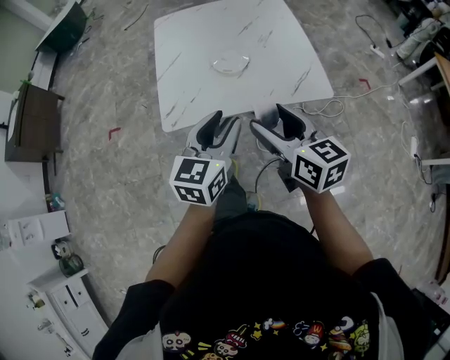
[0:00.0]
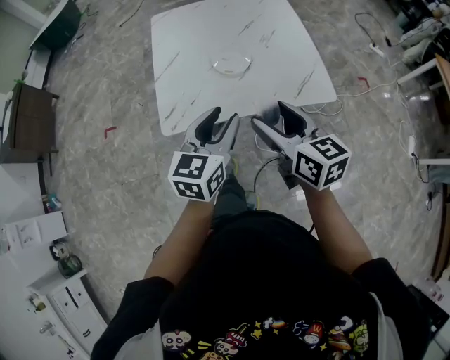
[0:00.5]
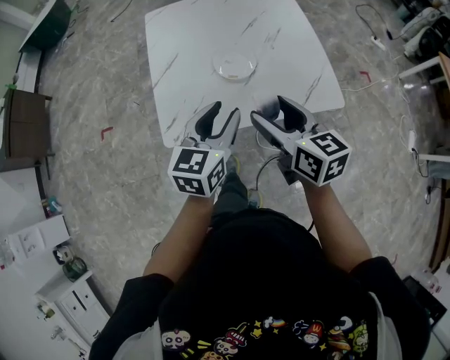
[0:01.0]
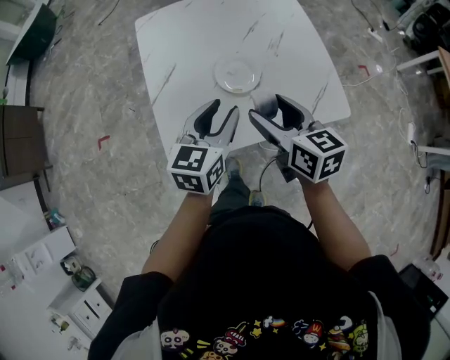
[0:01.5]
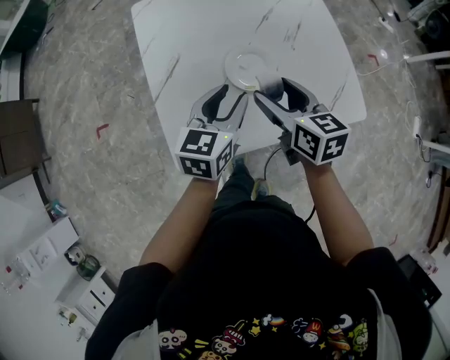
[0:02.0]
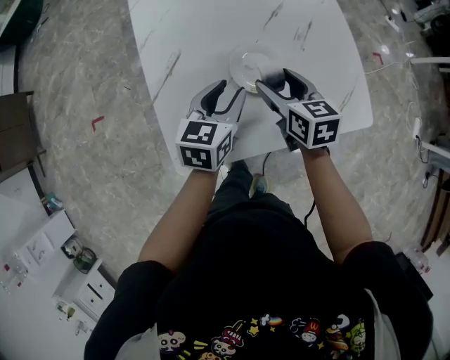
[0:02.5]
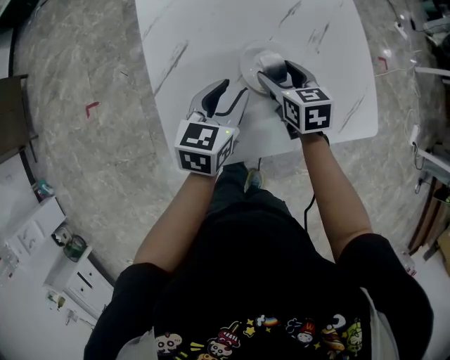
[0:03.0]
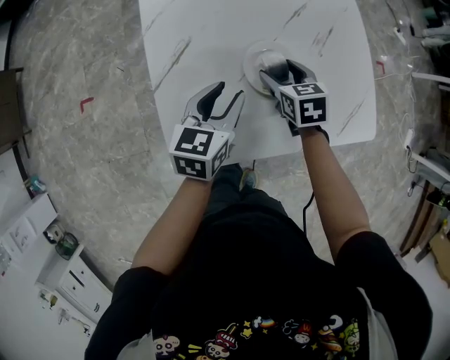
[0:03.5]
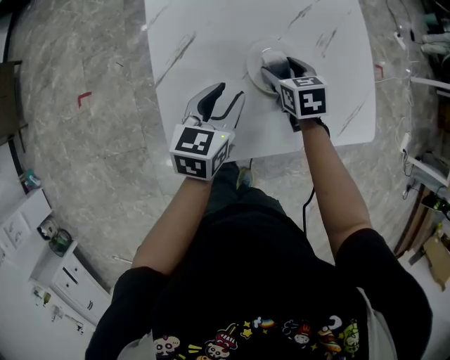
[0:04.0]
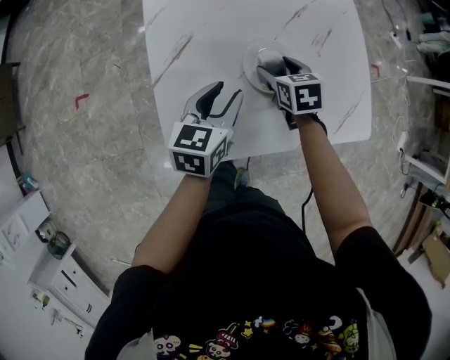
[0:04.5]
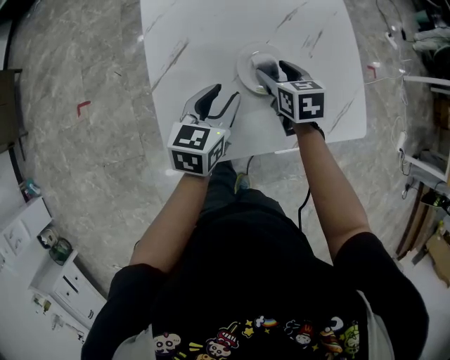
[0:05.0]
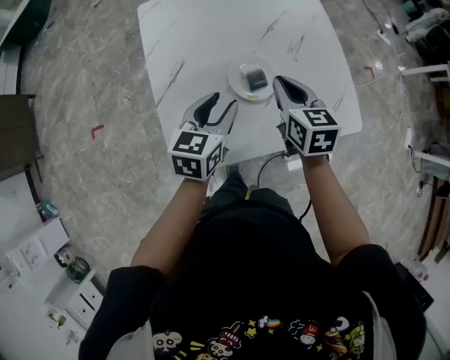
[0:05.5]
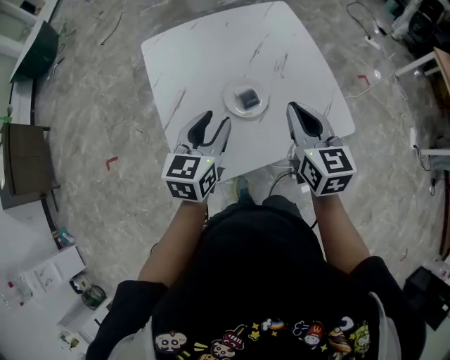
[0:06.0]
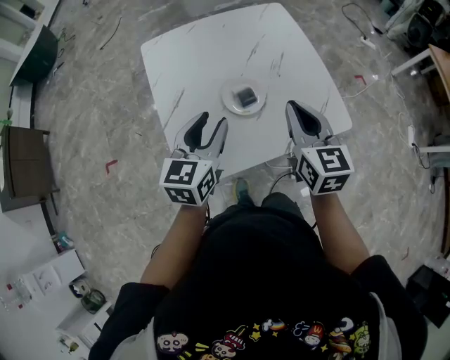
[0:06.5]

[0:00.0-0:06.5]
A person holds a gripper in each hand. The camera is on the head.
0:00.0 to 0:02.0: The left gripper heads forward, covering approximately 30 cm. Meanwhile the right gripper goes approximately 30 cm forward and downward.
0:02.0 to 0:04.5: The right gripper travels downward and forward by some 20 cm, and rotates about 30 degrees. Meanwhile the left gripper moves downward and to the left, approximately 10 cm.
0:04.5 to 0:06.5: The left gripper shifts roughly 15 cm upward and backward. Meanwhile the right gripper is displaced upward and backward by roughly 30 cm, angles its fingers upward, by about 40 degrees, and closes its fingers.

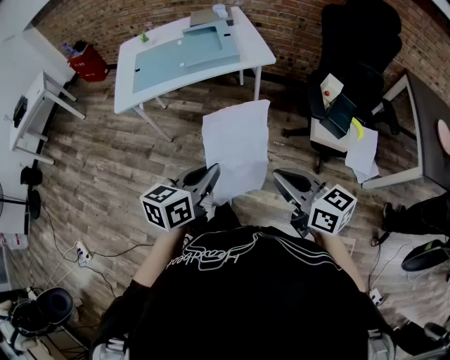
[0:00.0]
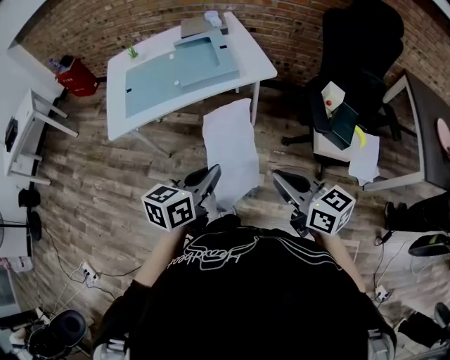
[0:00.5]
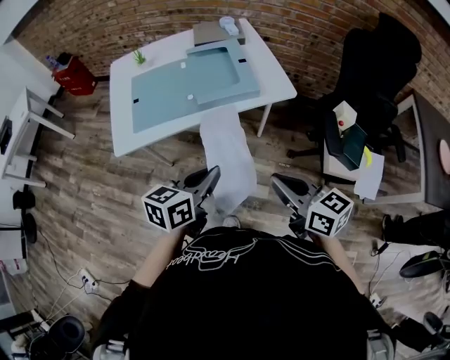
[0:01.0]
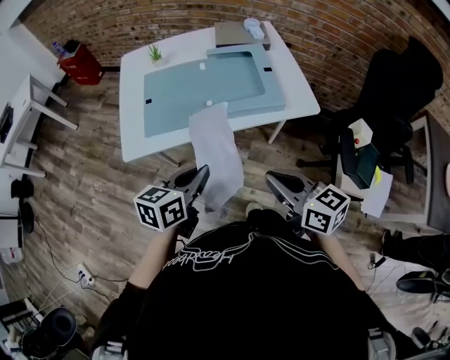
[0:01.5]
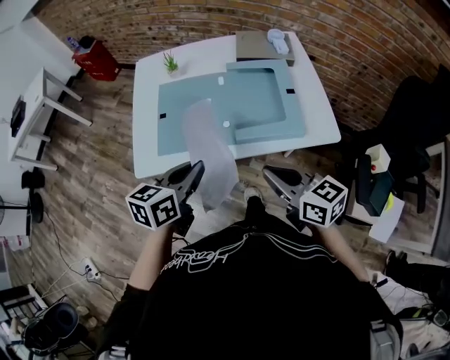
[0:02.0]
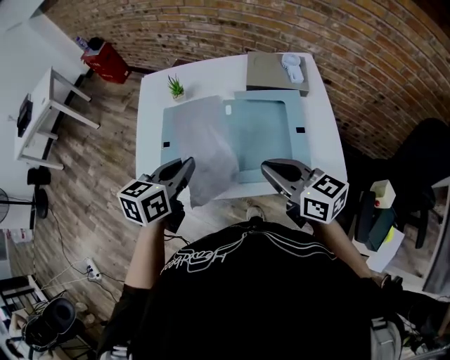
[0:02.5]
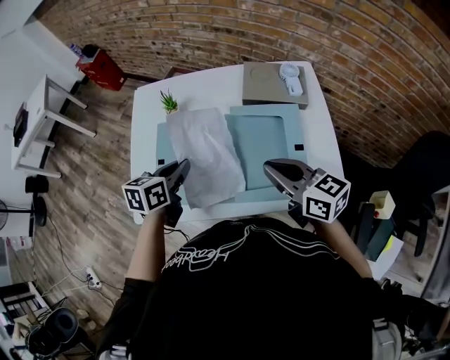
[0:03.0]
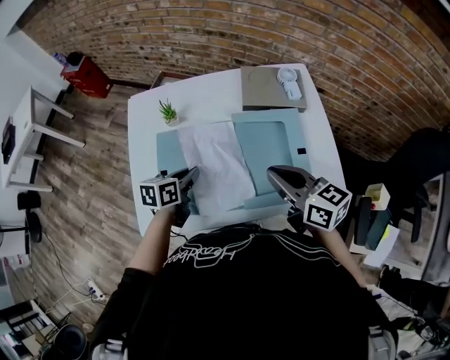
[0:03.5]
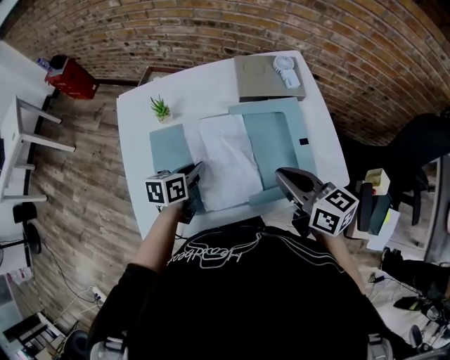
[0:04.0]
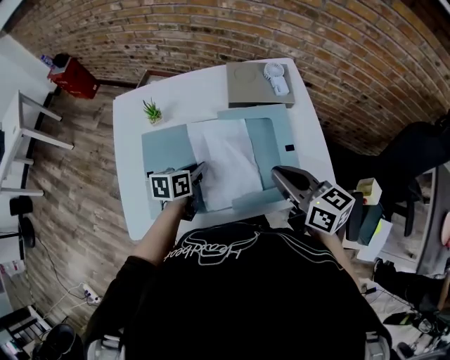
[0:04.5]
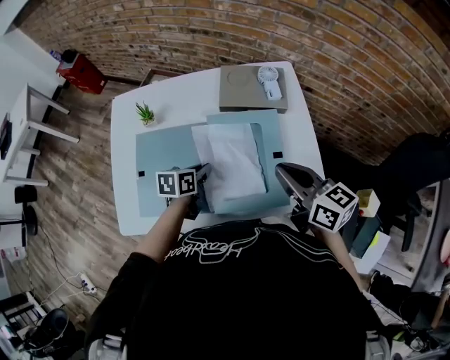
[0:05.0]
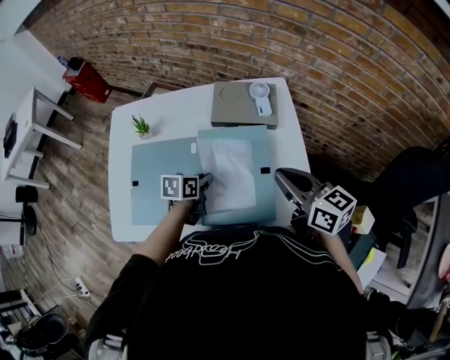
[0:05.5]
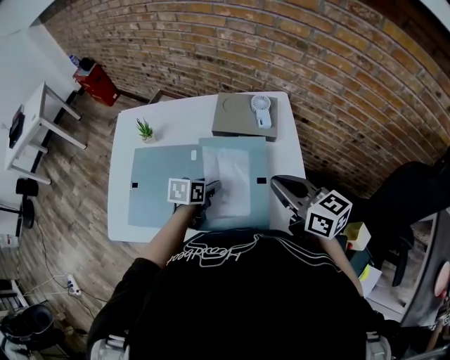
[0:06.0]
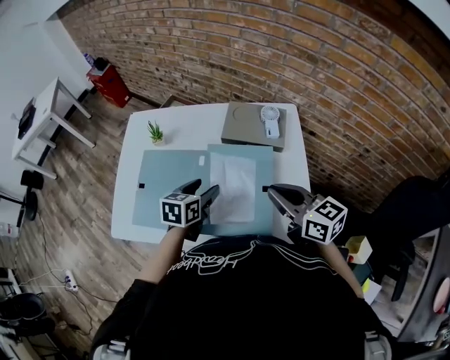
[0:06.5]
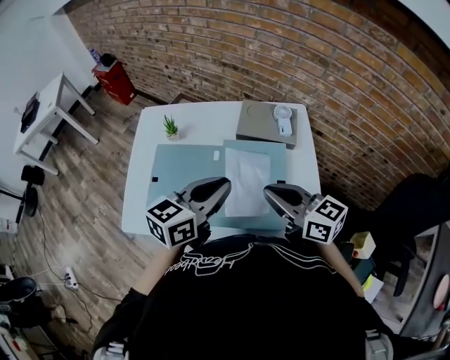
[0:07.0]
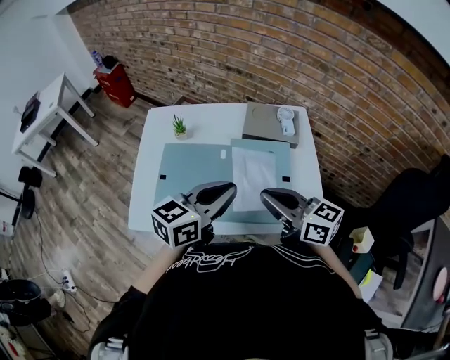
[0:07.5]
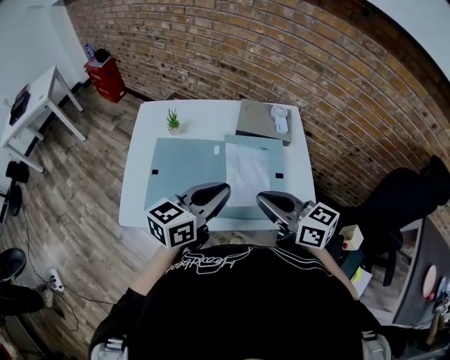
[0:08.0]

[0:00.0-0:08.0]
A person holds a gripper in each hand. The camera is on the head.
0:00.0 to 0:02.0: The two grippers travel together, forward and to the left, some 40 cm.
0:02.0 to 0:04.0: The right gripper goes roughly 20 cm forward. The left gripper moves forward and downward, roughly 25 cm.
0:04.0 to 0:06.0: The left gripper heads to the right, covering roughly 15 cm, and opens its fingers; the right gripper shifts about 15 cm to the right and forward.
0:06.0 to 0:08.0: The left gripper is displaced upward and backward by roughly 25 cm, tilts its fingers approximately 40 degrees upward, and closes. The right gripper travels to the left and backward by some 15 cm.

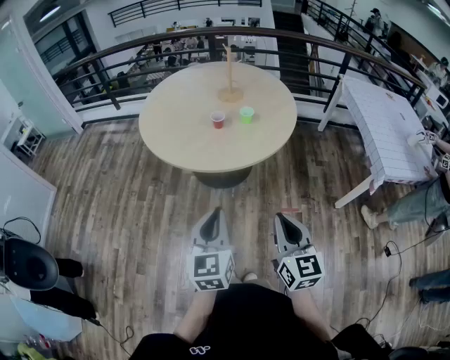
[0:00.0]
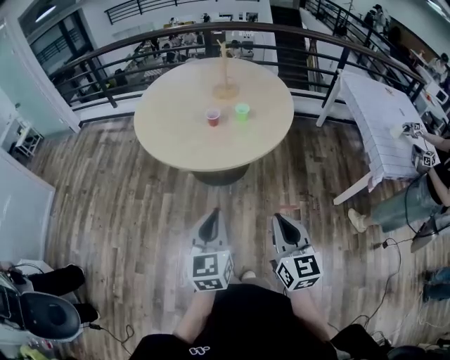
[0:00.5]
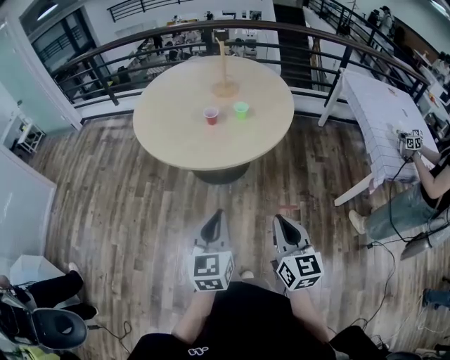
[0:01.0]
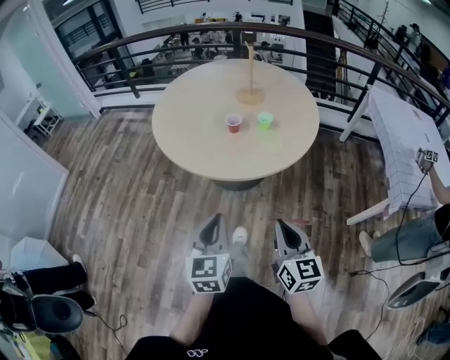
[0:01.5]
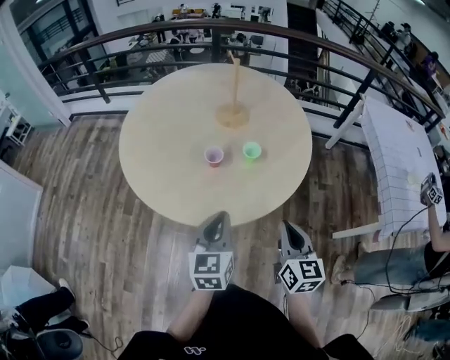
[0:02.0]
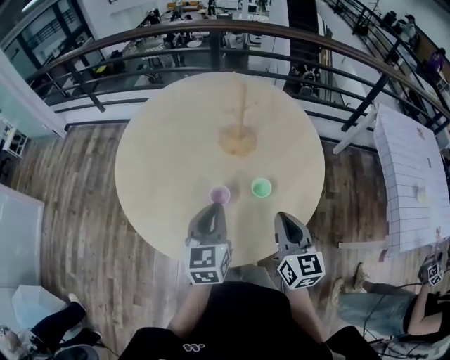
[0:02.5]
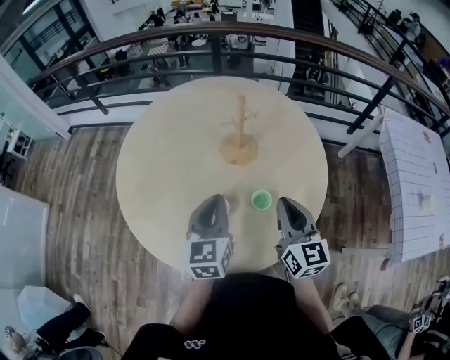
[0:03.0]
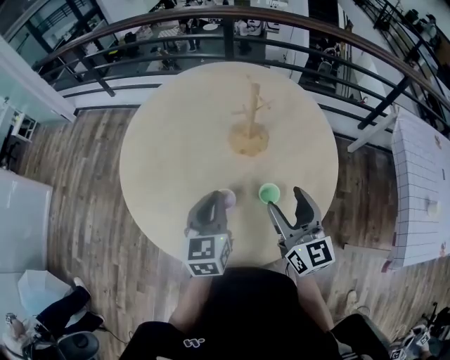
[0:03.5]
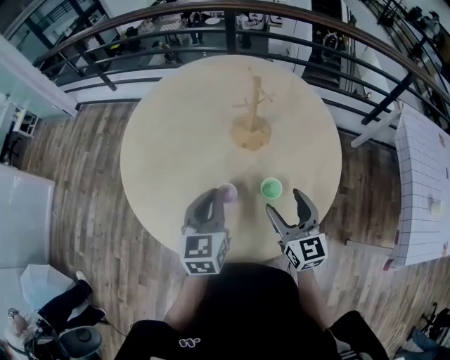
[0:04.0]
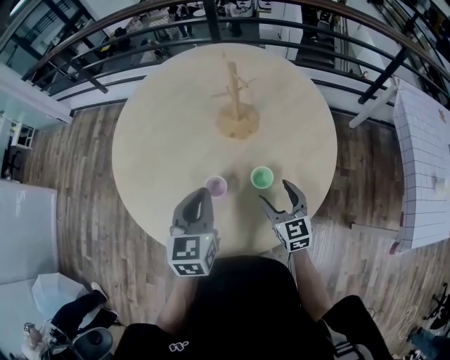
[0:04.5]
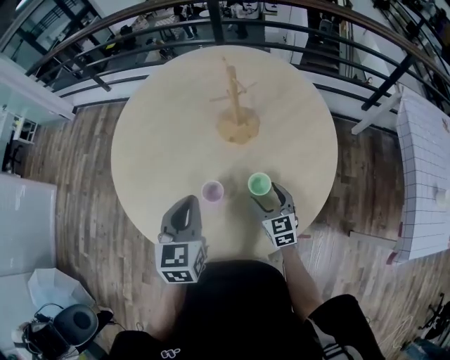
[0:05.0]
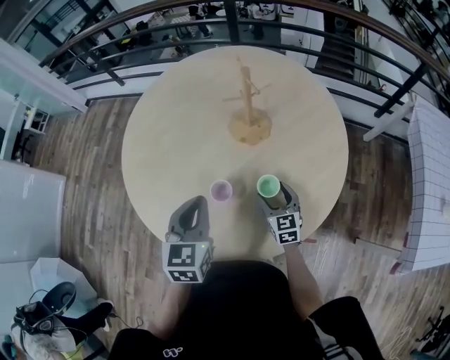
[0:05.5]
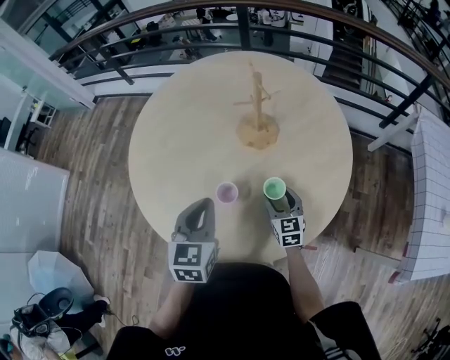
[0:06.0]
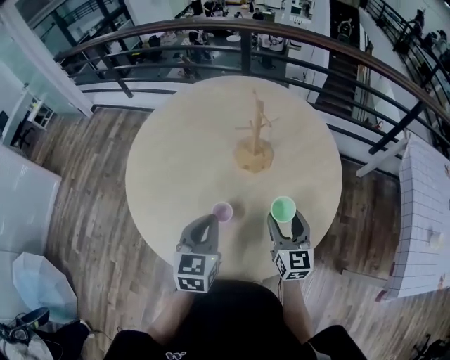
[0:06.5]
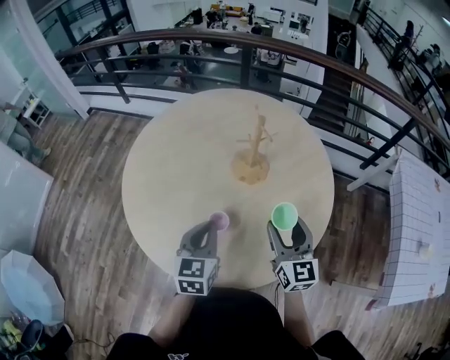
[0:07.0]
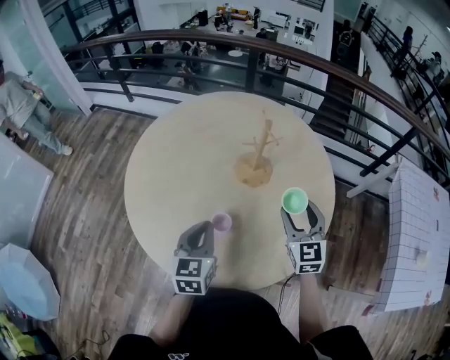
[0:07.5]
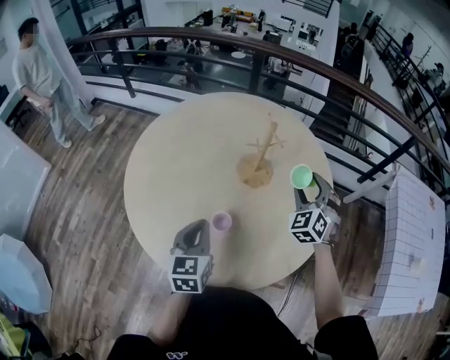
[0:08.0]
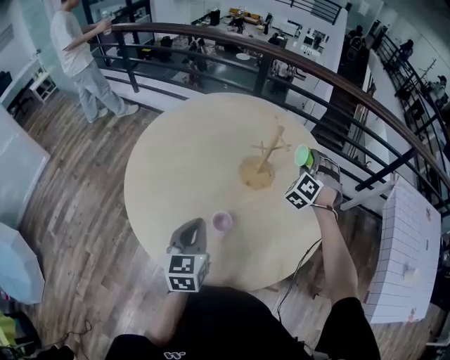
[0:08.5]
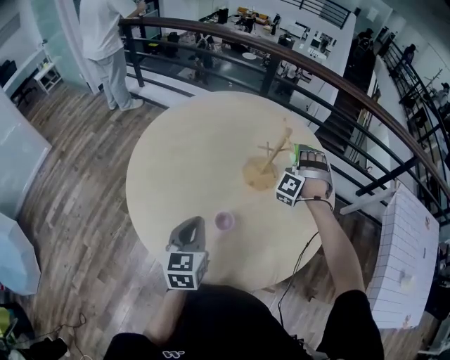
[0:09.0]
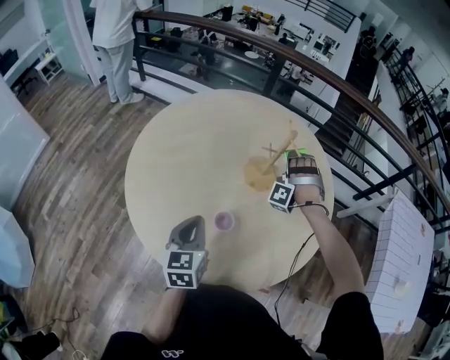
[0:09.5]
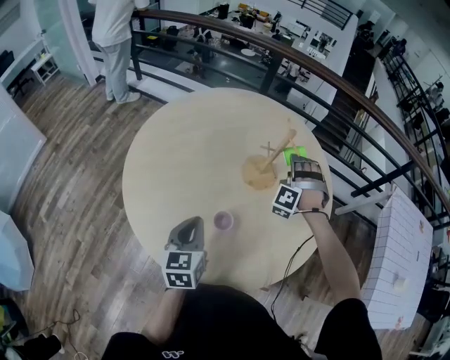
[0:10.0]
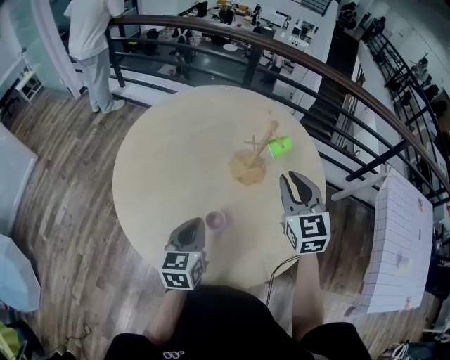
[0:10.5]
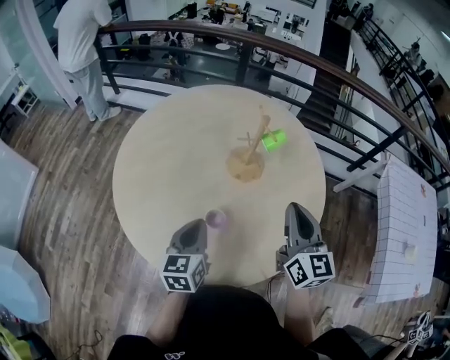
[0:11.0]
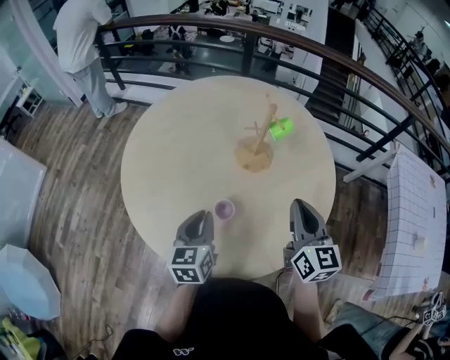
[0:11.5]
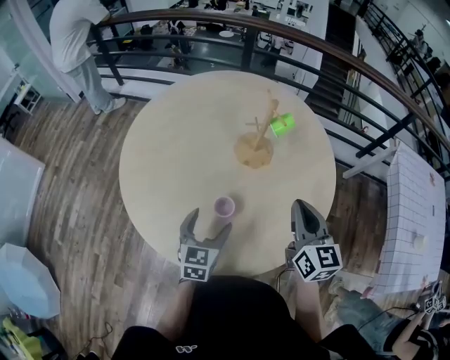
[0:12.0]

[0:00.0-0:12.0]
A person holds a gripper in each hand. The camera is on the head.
0:00.0 to 0:02.0: Both grippers move forward, approximately 25 cm.
0:02.0 to 0:04.0: The grippers both shift forward by some 25 cm. The right gripper opens its fingers.
0:04.0 to 0:06.0: The right gripper is displaced downward by approximately 15 cm.
0:06.0 to 0:08.0: The right gripper is displaced upward and forward by some 25 cm, and twists roughly 50 degrees counterclockwise, seen from behind.
0:08.0 to 0:10.0: The right gripper travels to the left and forward by some 10 cm, and rotates around the line of its fingers by roughly 50 degrees, counterclockwise from behind.
0:10.0 to 0:12.0: The right gripper is displaced backward by some 20 cm, rotates around the line of its fingers by some 110 degrees, clockwise from behind, and closes. Meanwhile the left gripper travels to the right and downward by roughly 10 cm, changes its angle by about 20 degrees, and opens.
